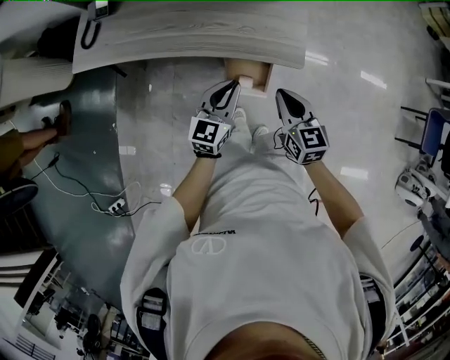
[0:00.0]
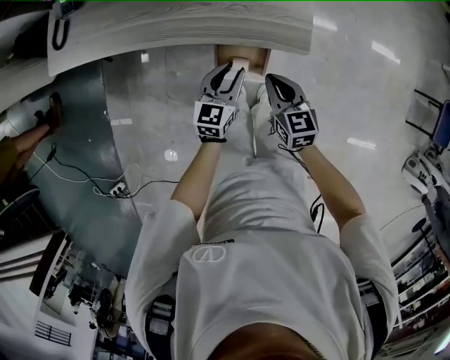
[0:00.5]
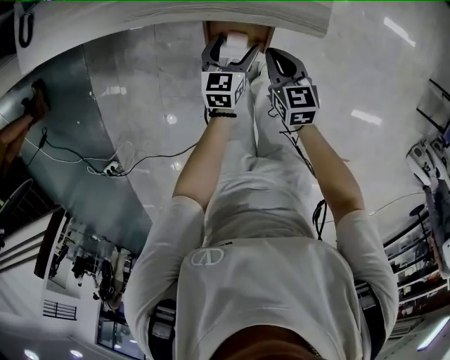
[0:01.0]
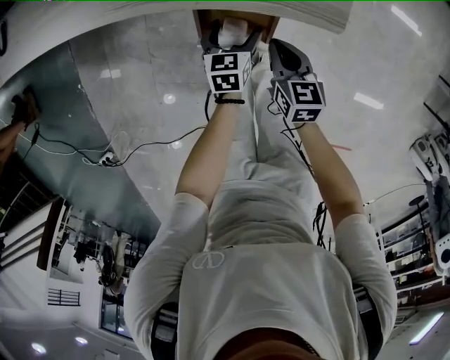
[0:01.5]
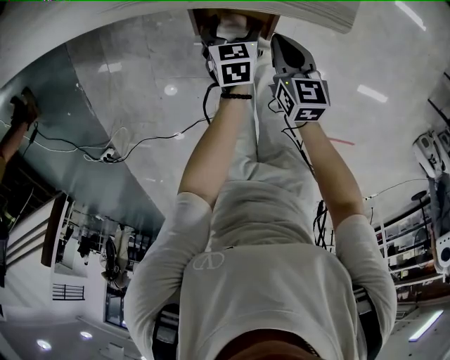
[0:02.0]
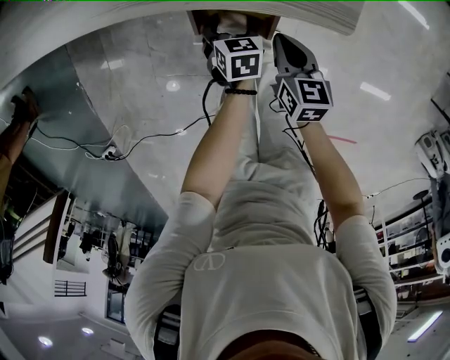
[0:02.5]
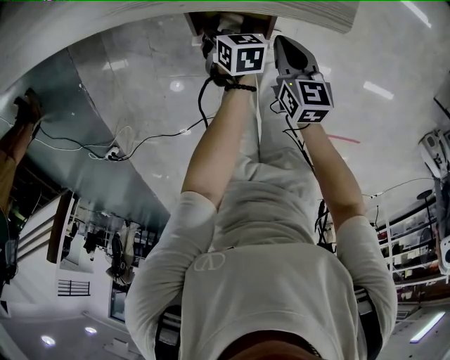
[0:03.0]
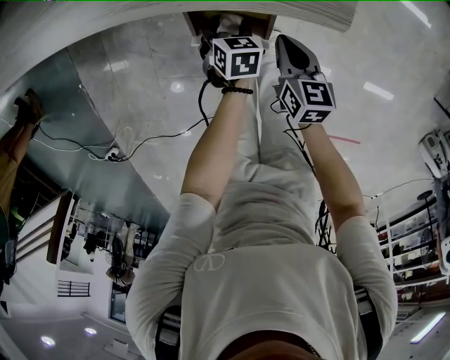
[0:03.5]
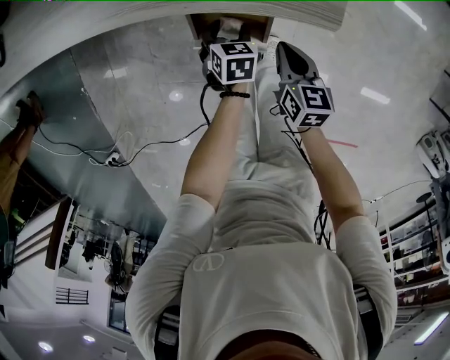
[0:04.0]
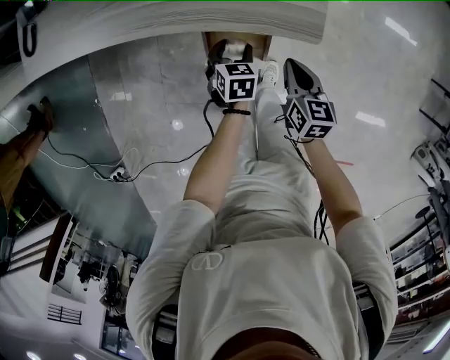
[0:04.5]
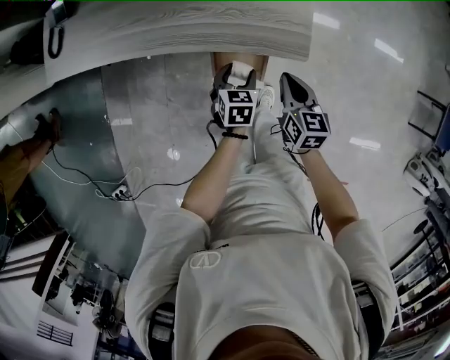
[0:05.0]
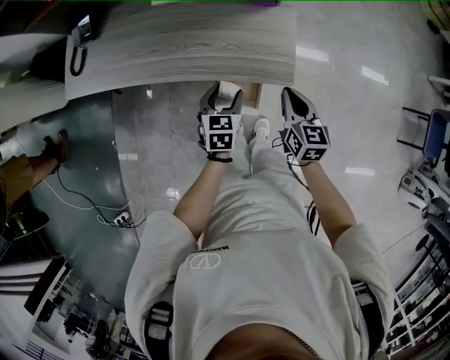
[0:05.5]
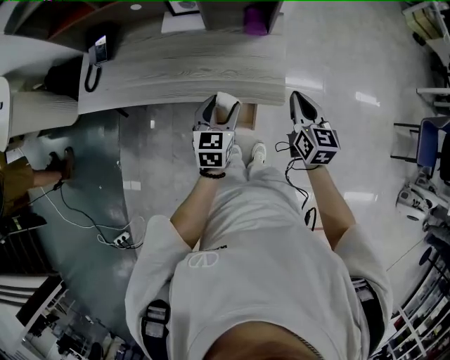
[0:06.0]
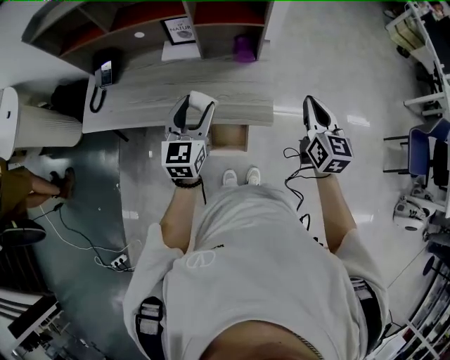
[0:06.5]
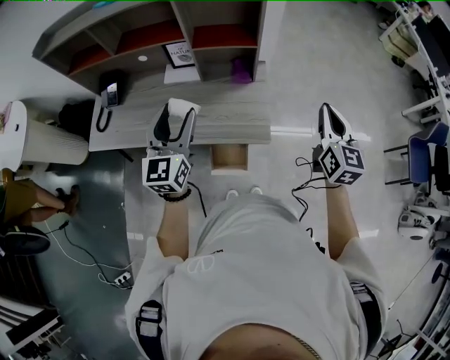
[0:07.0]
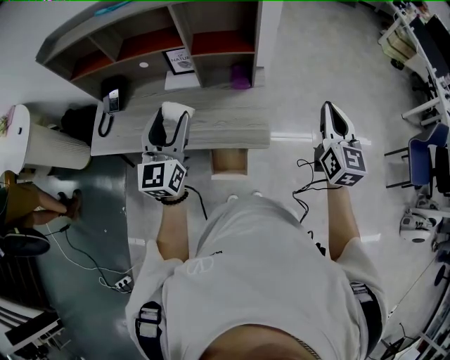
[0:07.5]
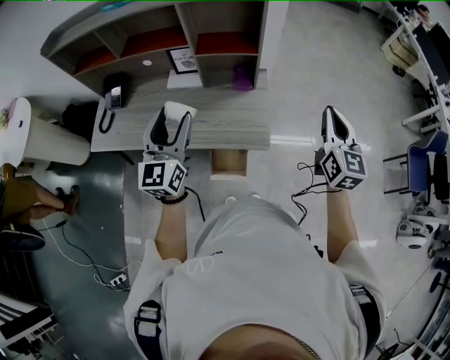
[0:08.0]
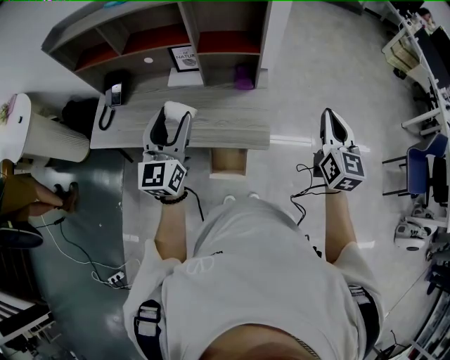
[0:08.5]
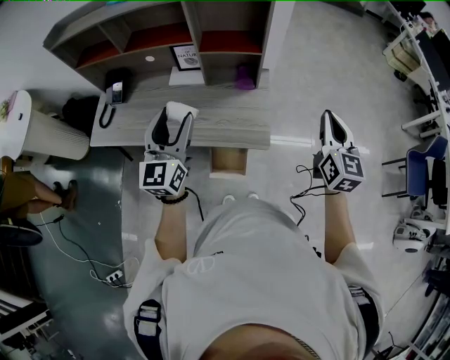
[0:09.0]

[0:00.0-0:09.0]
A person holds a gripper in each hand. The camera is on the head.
0:00.0 to 0:02.0: The two grippers go some 35 cm downward. The right gripper turns by approximately 20 degrees. The left gripper points its fingers some 40 degrees further downward, and opens up.
0:02.0 to 0:04.5: Both grippers move upward, approximately 10 cm. The left gripper closes.
0:04.5 to 0:07.0: Both grippers move upward, approximately 50 cm. The left gripper tips its fingers upward by some 60 degrees, while the right gripper angles its fingers upward, by about 30 degrees.
0:07.0 to 0:09.0: The grippers move only a little.

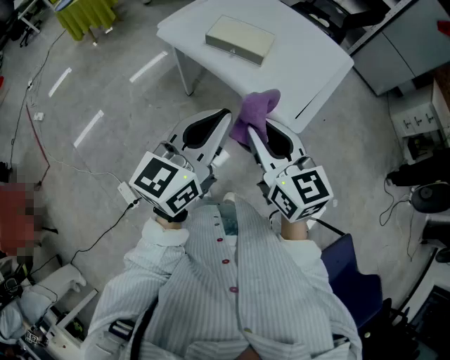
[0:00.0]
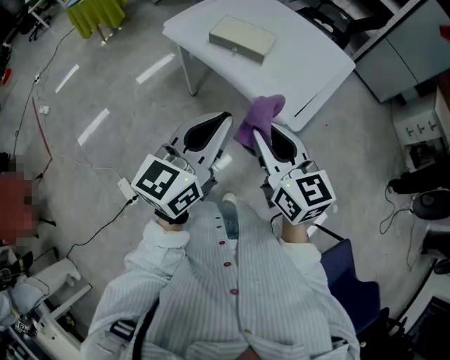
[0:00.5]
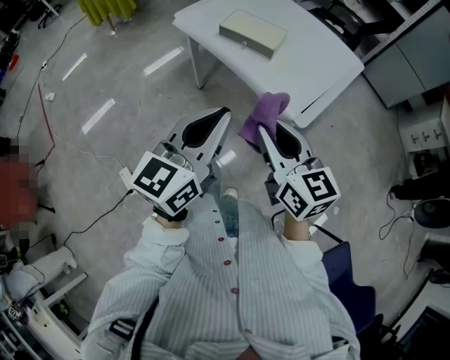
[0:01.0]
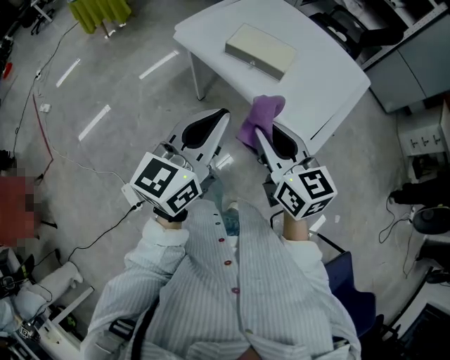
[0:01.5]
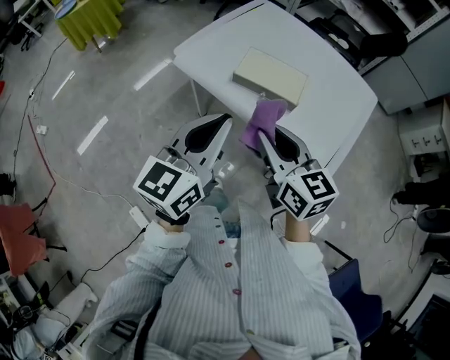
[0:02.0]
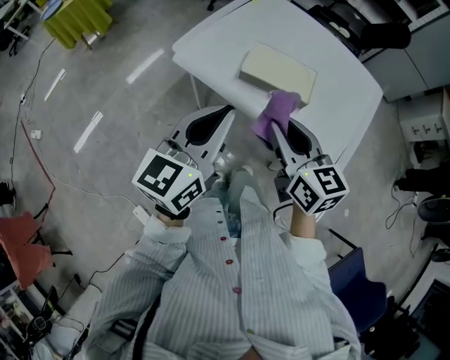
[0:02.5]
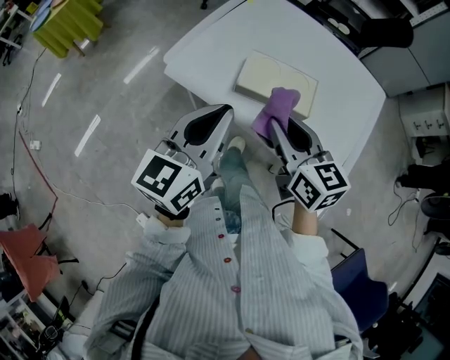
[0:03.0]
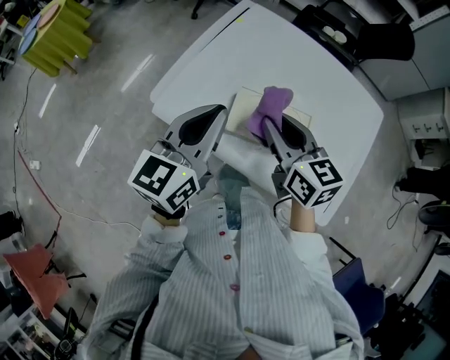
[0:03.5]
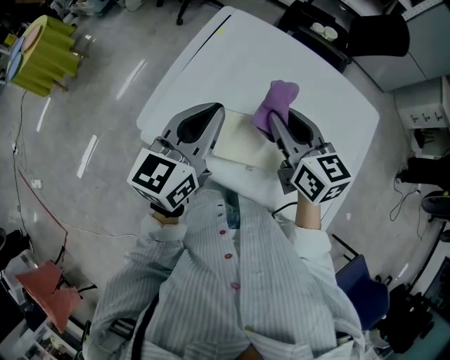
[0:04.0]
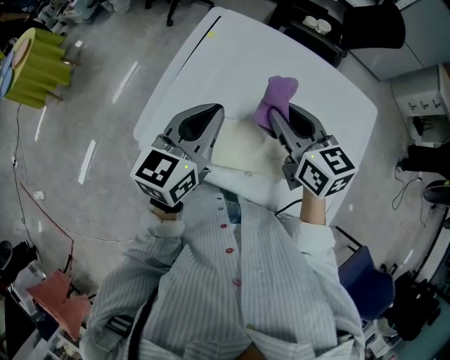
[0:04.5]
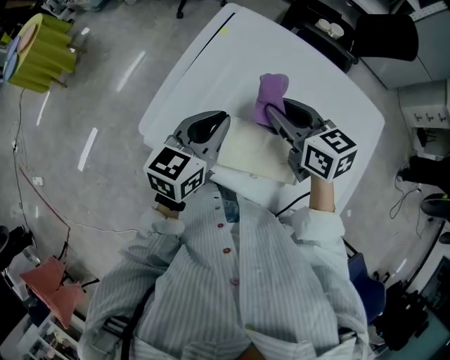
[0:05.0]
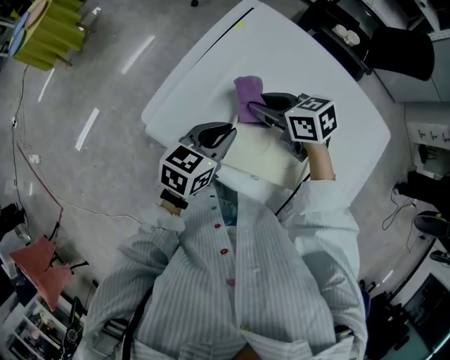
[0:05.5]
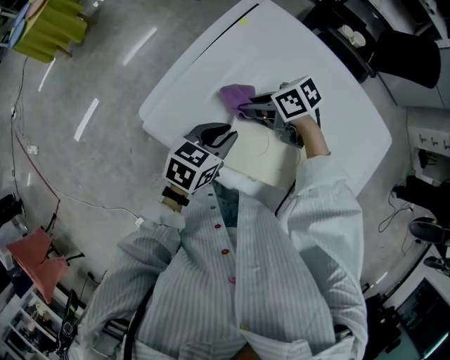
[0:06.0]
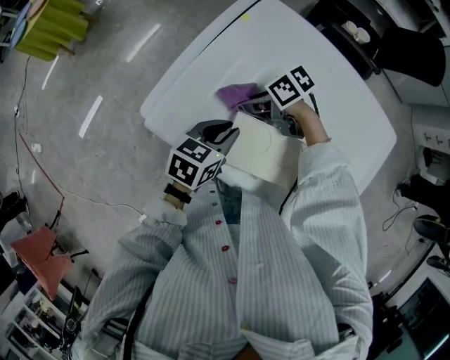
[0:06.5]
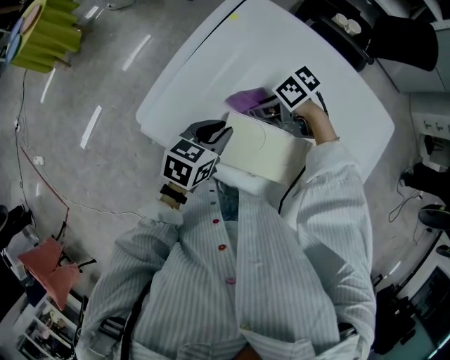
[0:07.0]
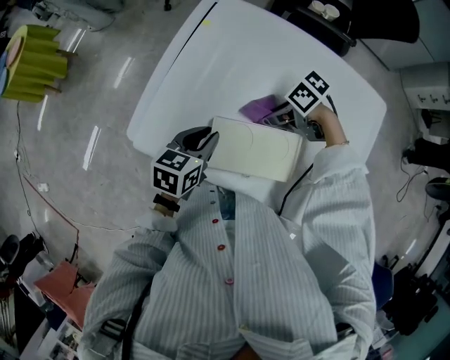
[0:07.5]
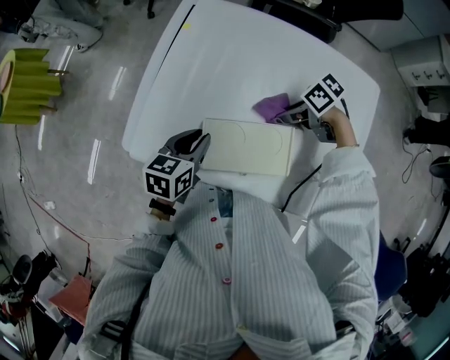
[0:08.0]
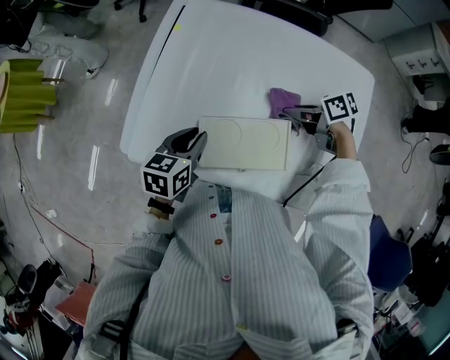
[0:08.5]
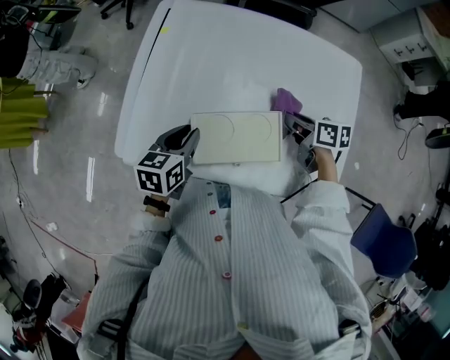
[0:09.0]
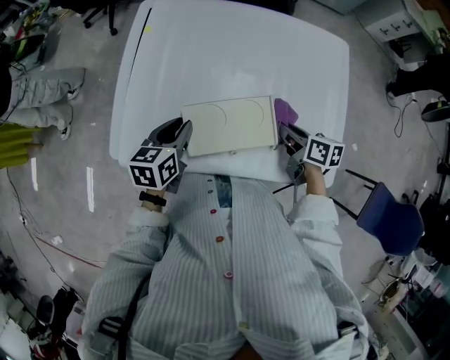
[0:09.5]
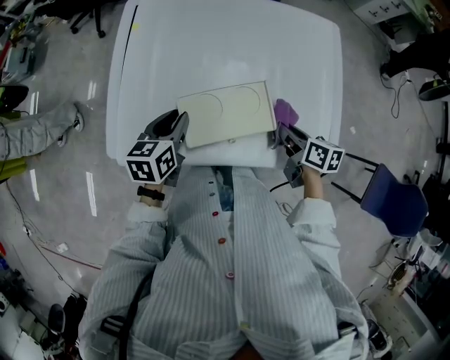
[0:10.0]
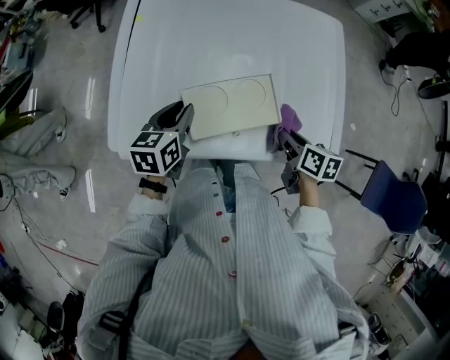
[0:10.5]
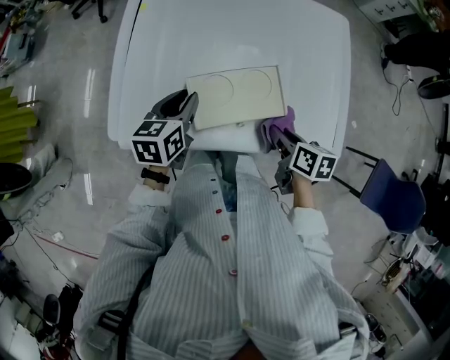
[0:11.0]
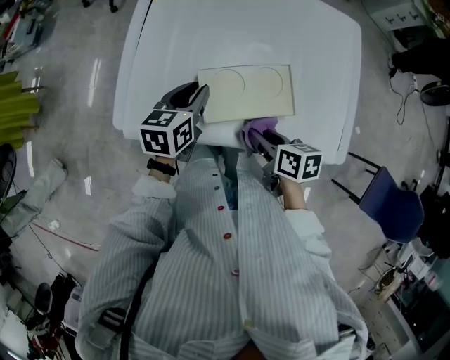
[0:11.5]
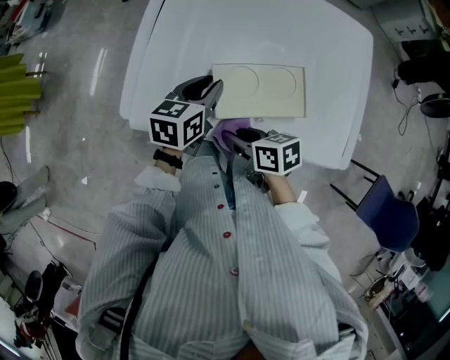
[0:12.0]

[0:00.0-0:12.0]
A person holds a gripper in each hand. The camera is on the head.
0:00.0 to 0:02.0: Both grippers move forward and to the left, some 20 cm.
0:02.0 to 0:04.0: The grippers both shift forward by approximately 35 cm.
0:04.0 to 0:06.0: The two grippers go roughly 20 cm downward. The left gripper rotates some 30 degrees. Meanwhile the right gripper changes its angle by roughly 60 degrees.
0:06.0 to 0:08.0: The right gripper changes place by some 20 cm.
0:08.0 to 0:10.0: The right gripper shifts by approximately 15 cm, and changes its angle by some 70 degrees.
0:10.0 to 0:12.0: The right gripper travels to the left by approximately 25 cm, and rotates some 30 degrees.

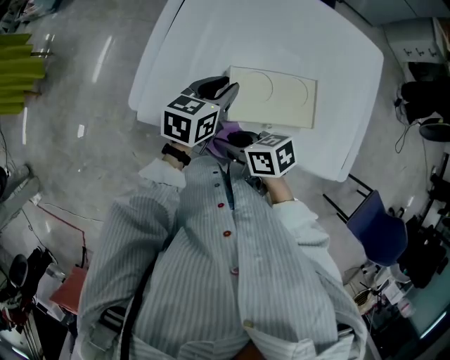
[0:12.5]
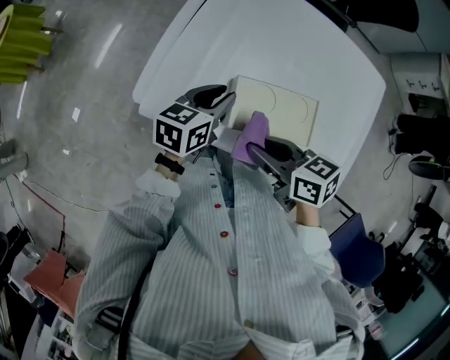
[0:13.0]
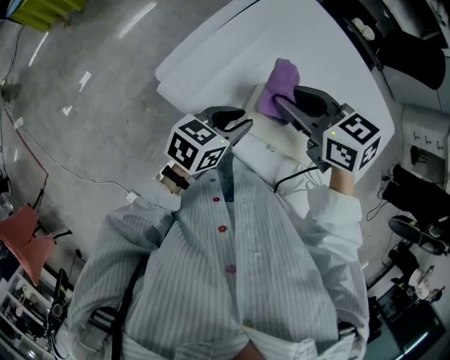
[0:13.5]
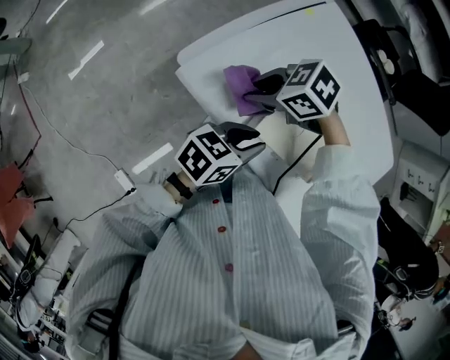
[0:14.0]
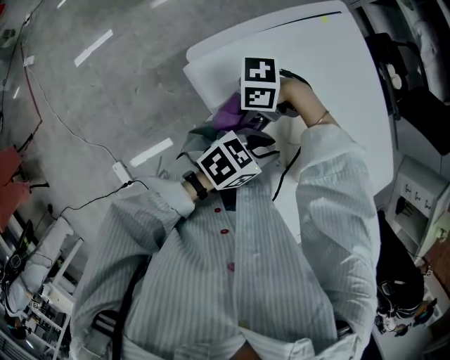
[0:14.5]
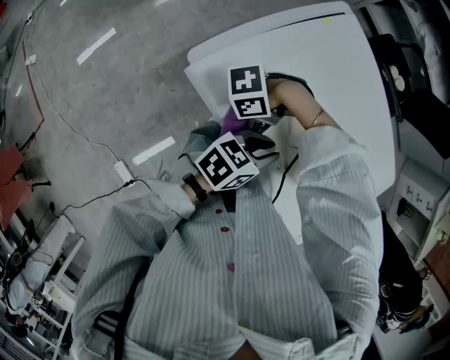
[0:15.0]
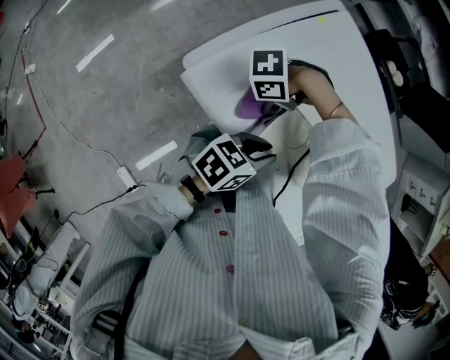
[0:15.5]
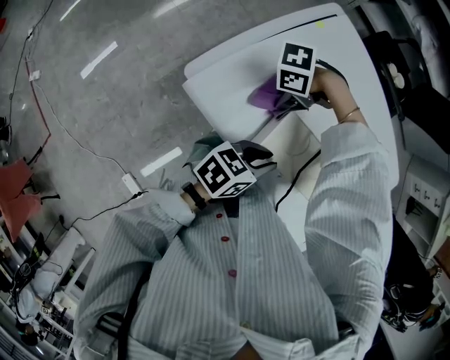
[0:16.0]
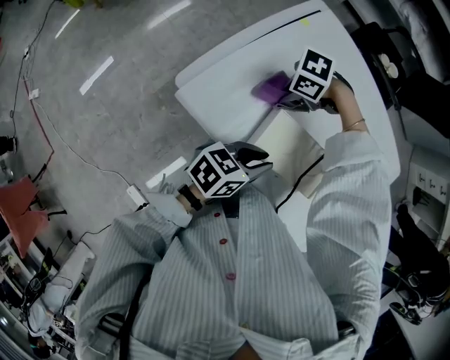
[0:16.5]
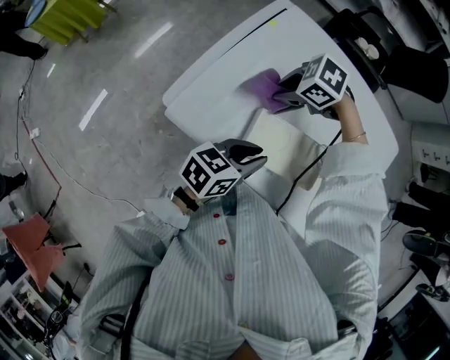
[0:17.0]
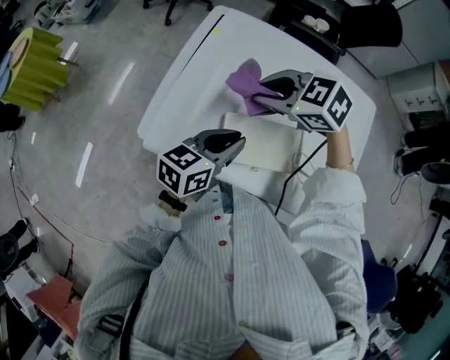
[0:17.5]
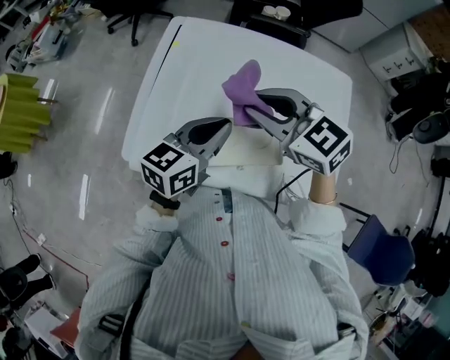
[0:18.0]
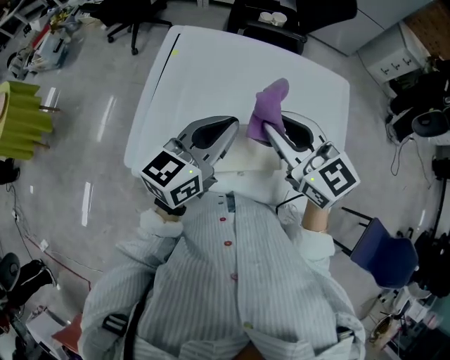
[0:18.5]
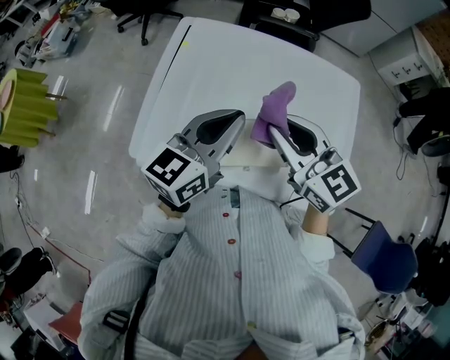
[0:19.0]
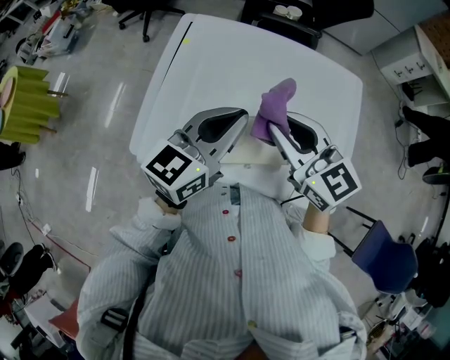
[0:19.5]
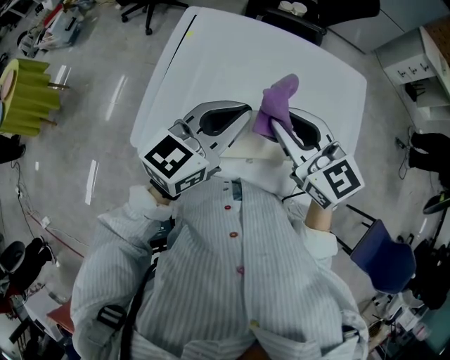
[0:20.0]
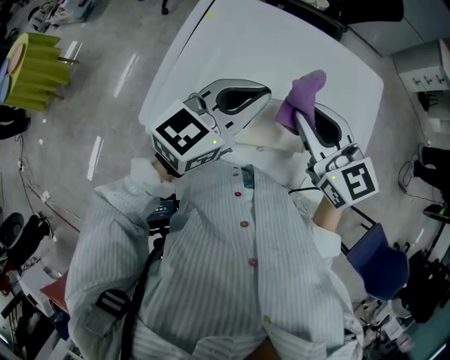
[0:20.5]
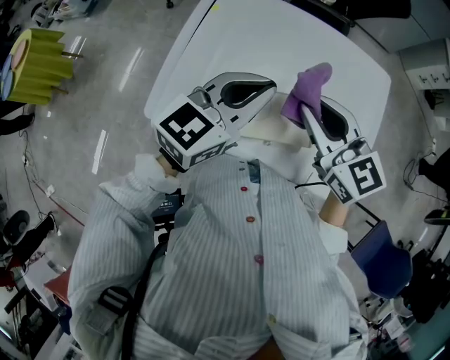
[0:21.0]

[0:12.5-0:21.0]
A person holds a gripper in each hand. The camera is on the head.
0:12.5 to 0:14.5: The right gripper goes upward and returns, roughly 15 cm each way, and swivels approximately 110 degrees, while the left gripper moves approximately 10 cm.
0:14.5 to 0:16.5: The right gripper moves to the left, roughly 20 cm, and turns by approximately 30 degrees.
0:16.5 to 0:19.0: The grippers both shift upward by about 20 cm. The left gripper swivels roughly 30 degrees, while the right gripper tilts its fingers about 50 degrees upward.
0:19.0 to 0:21.0: The grippers make only small movements.
